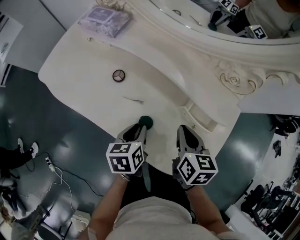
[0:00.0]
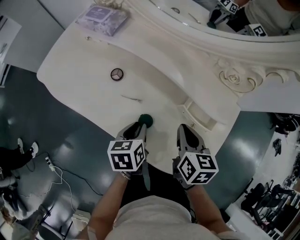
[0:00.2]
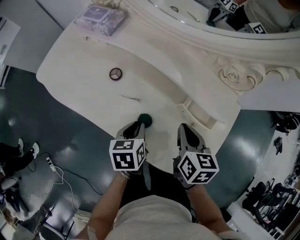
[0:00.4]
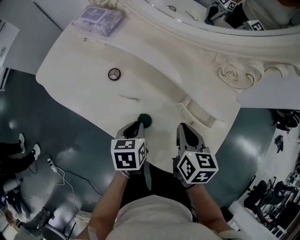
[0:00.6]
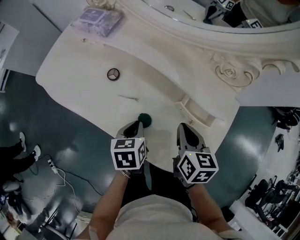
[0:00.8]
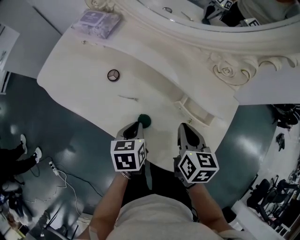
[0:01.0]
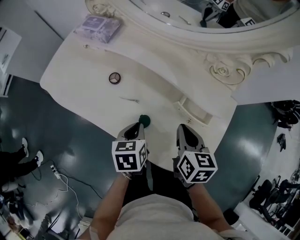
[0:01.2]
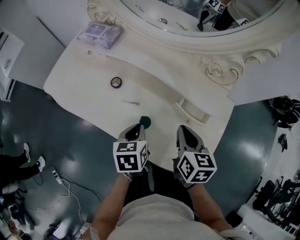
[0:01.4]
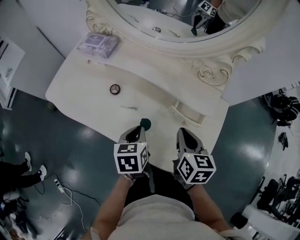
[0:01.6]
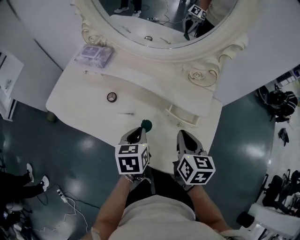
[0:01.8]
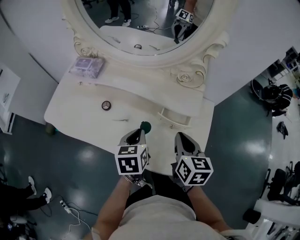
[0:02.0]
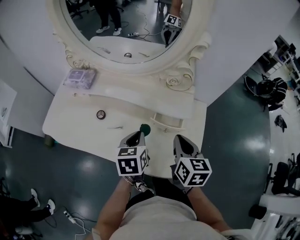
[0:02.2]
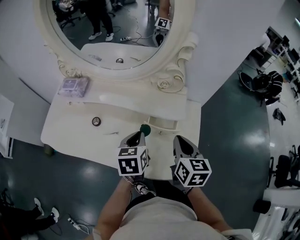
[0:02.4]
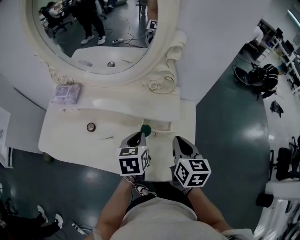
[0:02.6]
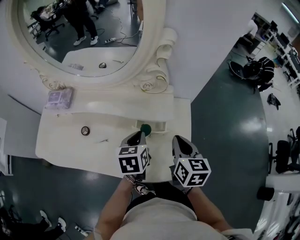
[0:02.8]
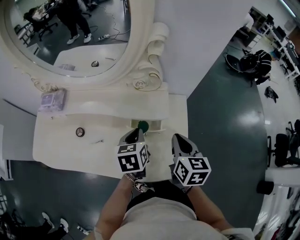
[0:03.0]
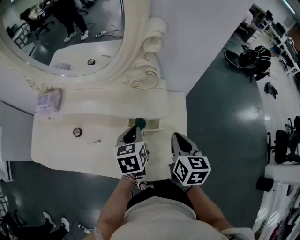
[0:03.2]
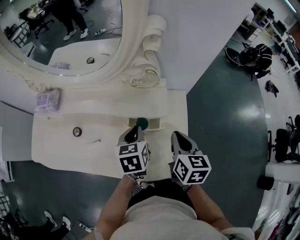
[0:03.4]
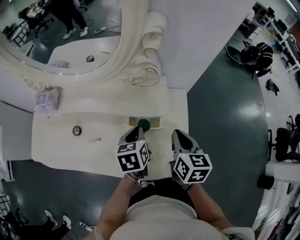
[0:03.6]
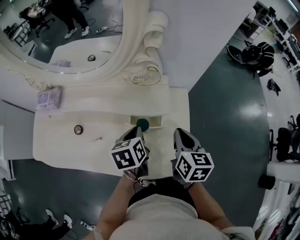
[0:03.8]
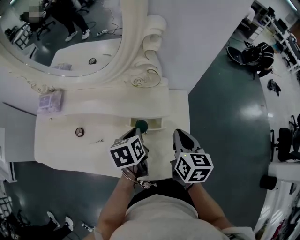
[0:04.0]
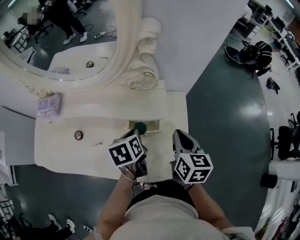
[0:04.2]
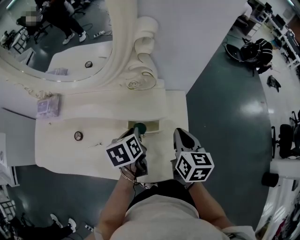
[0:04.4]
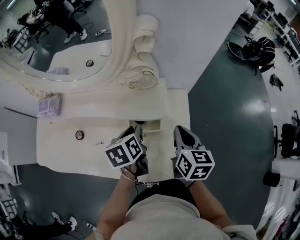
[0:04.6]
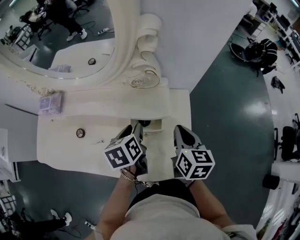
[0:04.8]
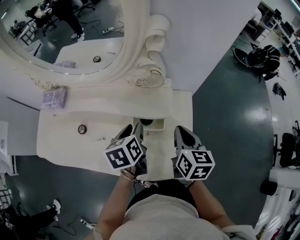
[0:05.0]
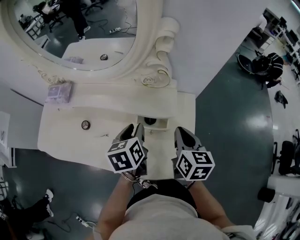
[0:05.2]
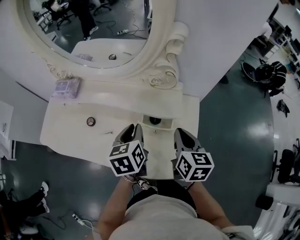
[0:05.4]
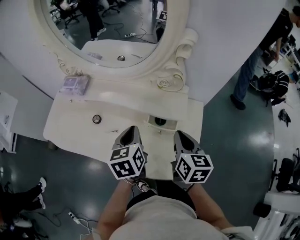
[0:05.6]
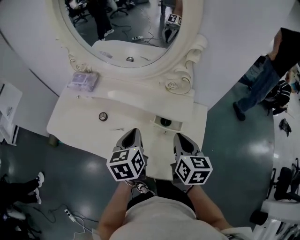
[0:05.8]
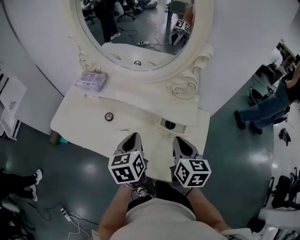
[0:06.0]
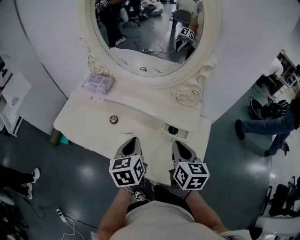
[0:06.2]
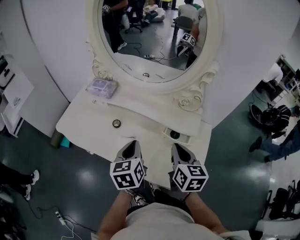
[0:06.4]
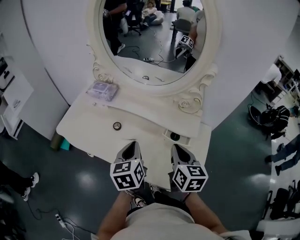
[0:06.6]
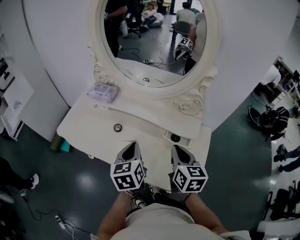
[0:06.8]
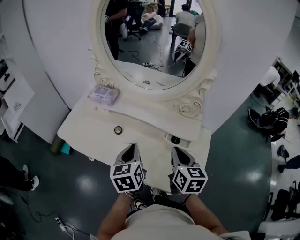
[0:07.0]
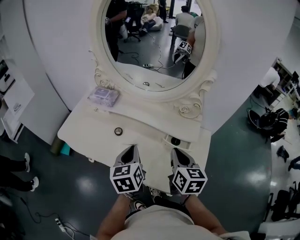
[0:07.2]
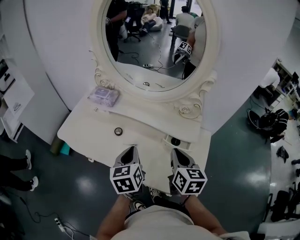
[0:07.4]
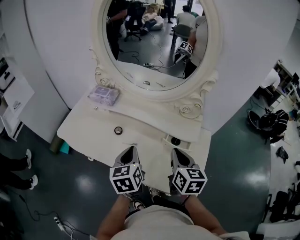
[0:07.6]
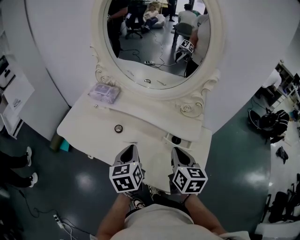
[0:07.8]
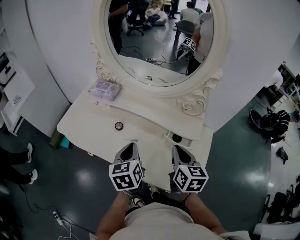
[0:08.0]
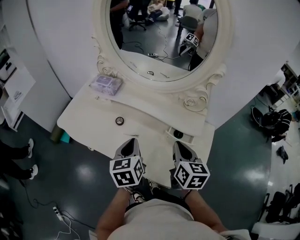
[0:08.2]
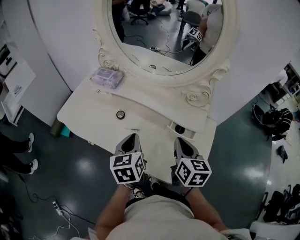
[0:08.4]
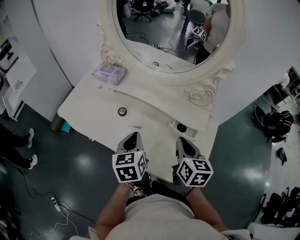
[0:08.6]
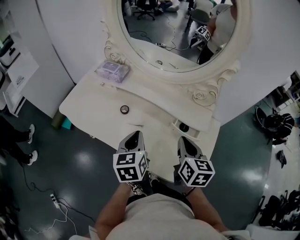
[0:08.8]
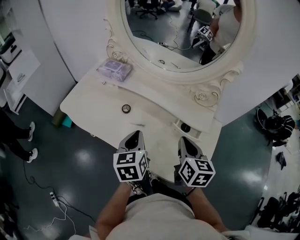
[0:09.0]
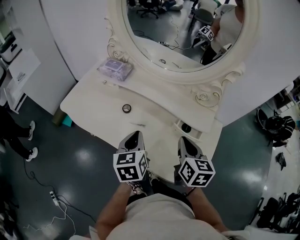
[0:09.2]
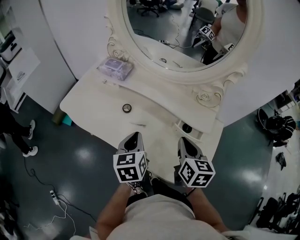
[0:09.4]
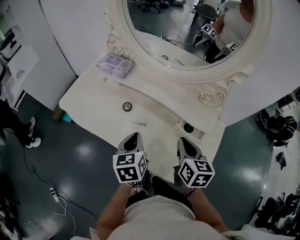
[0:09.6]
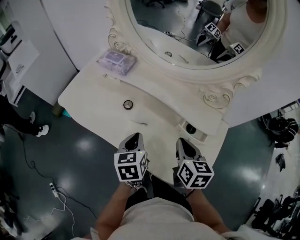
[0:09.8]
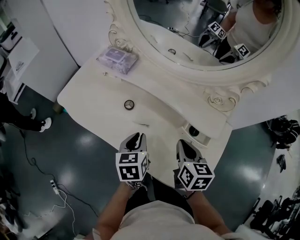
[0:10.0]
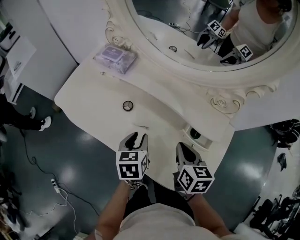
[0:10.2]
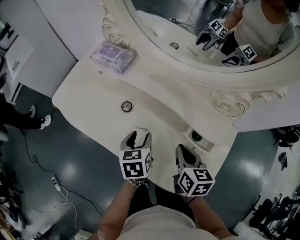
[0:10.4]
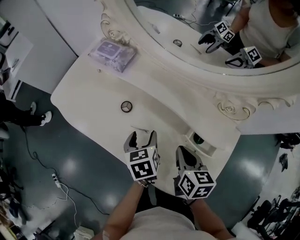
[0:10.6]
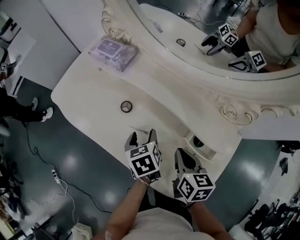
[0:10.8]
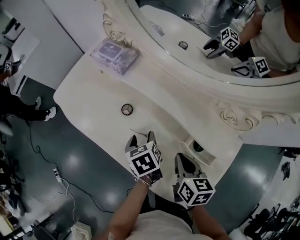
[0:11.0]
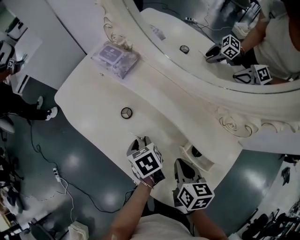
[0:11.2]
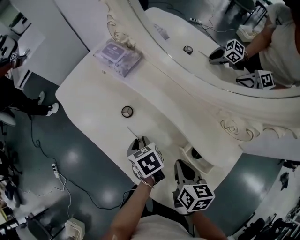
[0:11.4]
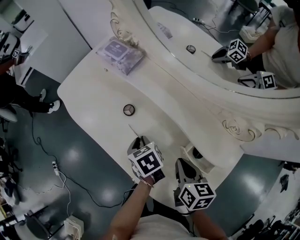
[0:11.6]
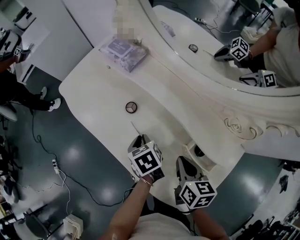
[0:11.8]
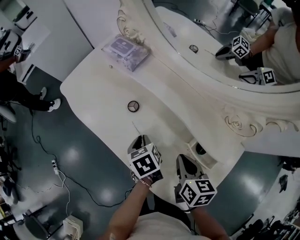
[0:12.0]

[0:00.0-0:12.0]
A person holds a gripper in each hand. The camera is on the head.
0:00.0 to 0:01.6: The right gripper shifts by about 5 cm. The left gripper moves upward, about 5 cm.
0:01.6 to 0:03.0: The right gripper shifts some 15 cm to the right, and changes its angle by roughly 20 degrees. Meanwhile the left gripper heads to the right and forward, covering approximately 15 cm.
0:03.0 to 0:04.4: The grippers stay close to where they were, moving slightly.
0:04.4 to 0:06.0: The left gripper heads to the left, upward and backward, covering roughly 15 cm, rotates roughly 30 degrees, and opens, then closes again, while the right gripper moves to the left, roughly 10 cm, and swivels some 20 degrees.
0:06.0 to 0:07.6: The right gripper ends up roughly 5 cm from where it was. The left gripper heads to the left, covering about 5 cm.
0:07.6 to 0:09.0: The grippers stay close to where they were, moving slightly.
0:09.0 to 0:10.4: The left gripper goes about 15 cm downward and forward, and opens its fingers; the right gripper heads downward, covering roughly 10 cm.
0:10.4 to 0:12.0: The left gripper changes place by about 5 cm, turns by about 30 degrees, and closes up.

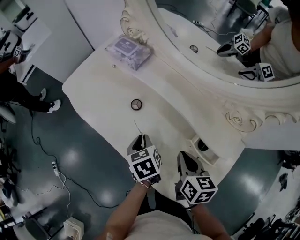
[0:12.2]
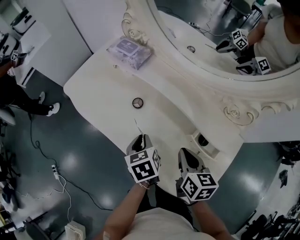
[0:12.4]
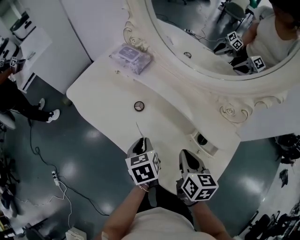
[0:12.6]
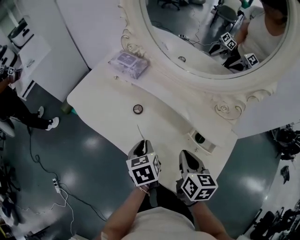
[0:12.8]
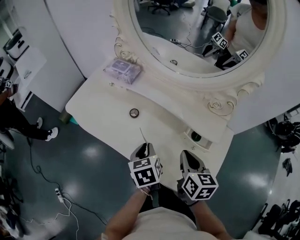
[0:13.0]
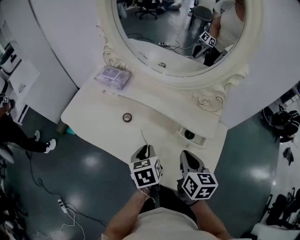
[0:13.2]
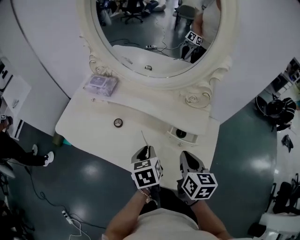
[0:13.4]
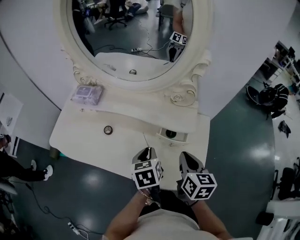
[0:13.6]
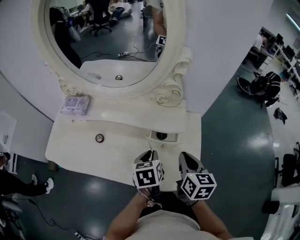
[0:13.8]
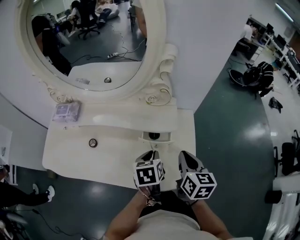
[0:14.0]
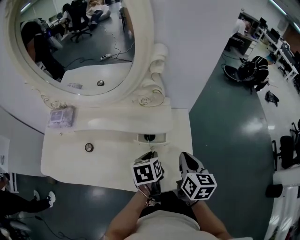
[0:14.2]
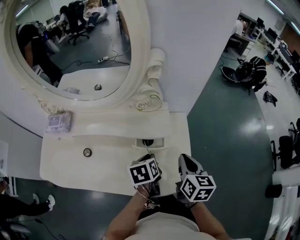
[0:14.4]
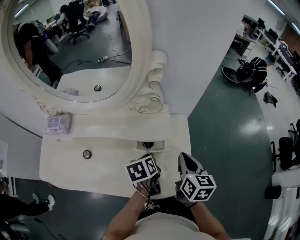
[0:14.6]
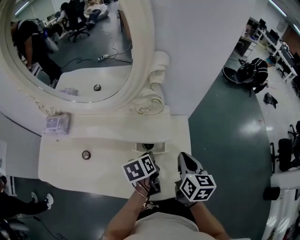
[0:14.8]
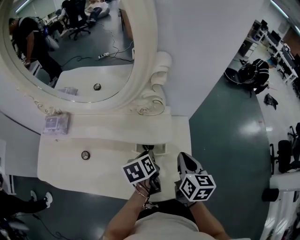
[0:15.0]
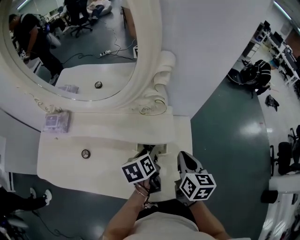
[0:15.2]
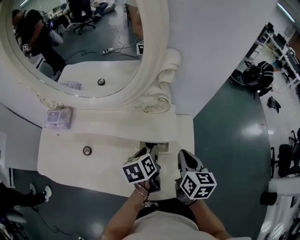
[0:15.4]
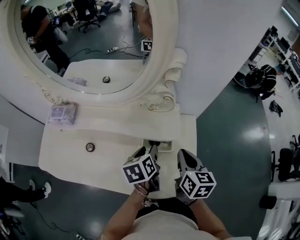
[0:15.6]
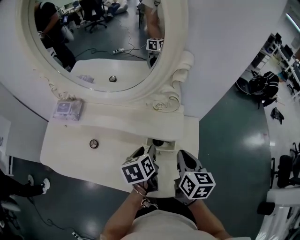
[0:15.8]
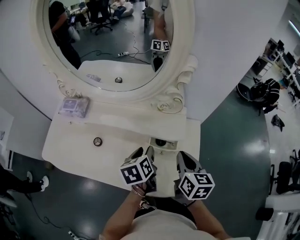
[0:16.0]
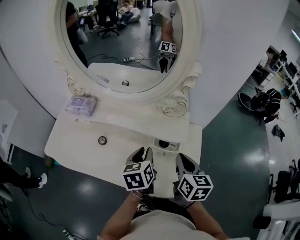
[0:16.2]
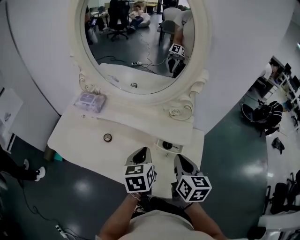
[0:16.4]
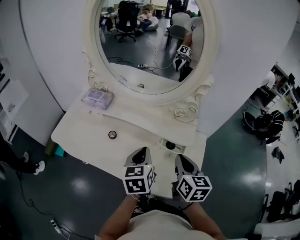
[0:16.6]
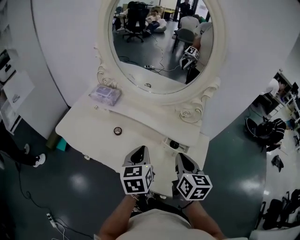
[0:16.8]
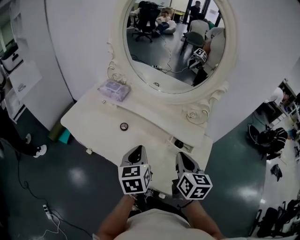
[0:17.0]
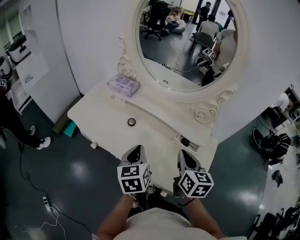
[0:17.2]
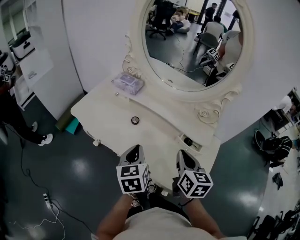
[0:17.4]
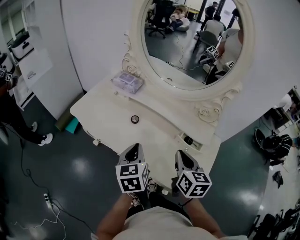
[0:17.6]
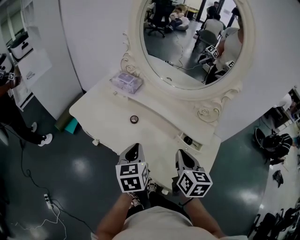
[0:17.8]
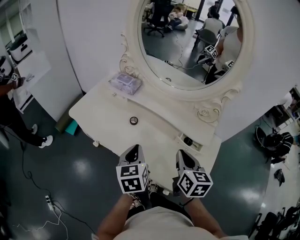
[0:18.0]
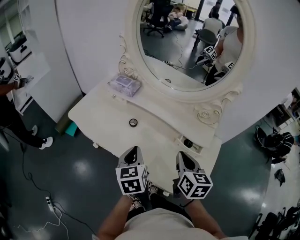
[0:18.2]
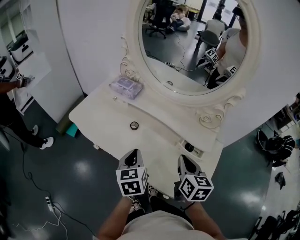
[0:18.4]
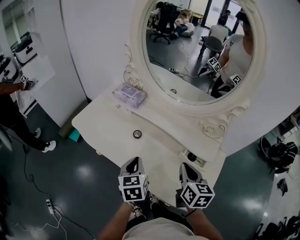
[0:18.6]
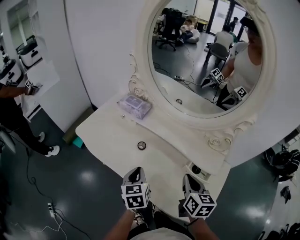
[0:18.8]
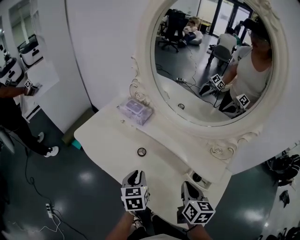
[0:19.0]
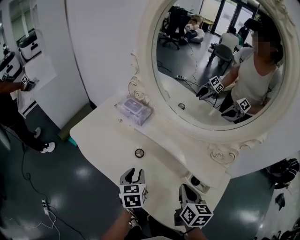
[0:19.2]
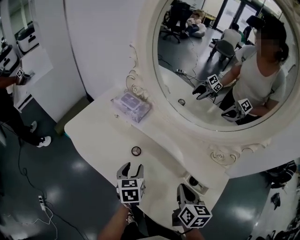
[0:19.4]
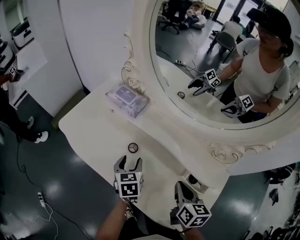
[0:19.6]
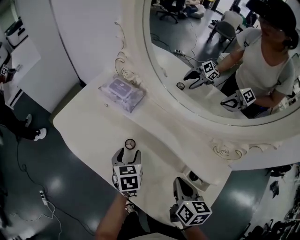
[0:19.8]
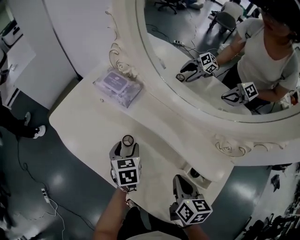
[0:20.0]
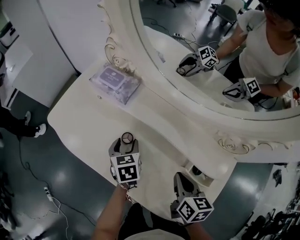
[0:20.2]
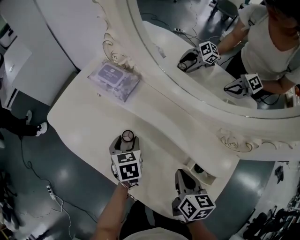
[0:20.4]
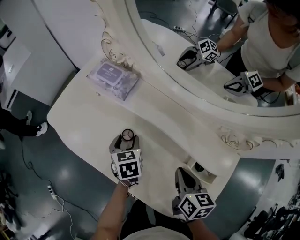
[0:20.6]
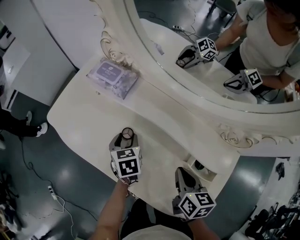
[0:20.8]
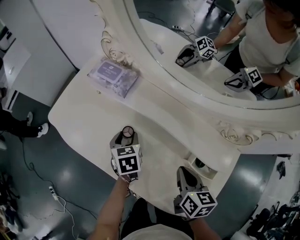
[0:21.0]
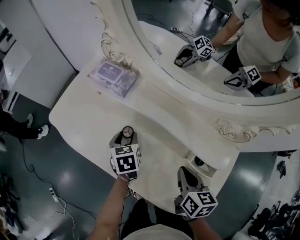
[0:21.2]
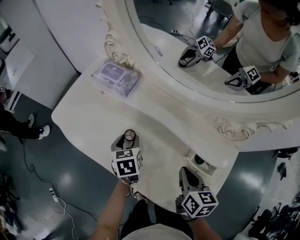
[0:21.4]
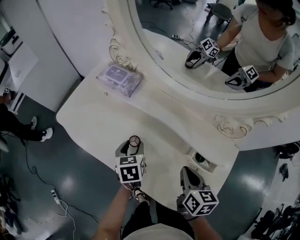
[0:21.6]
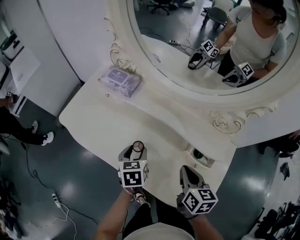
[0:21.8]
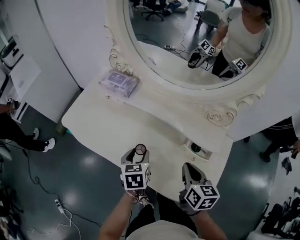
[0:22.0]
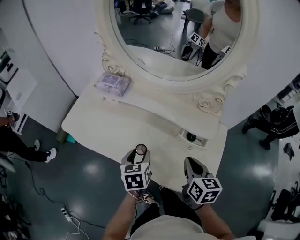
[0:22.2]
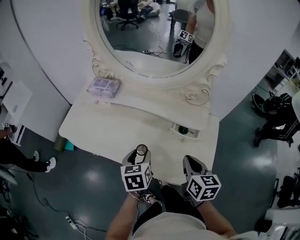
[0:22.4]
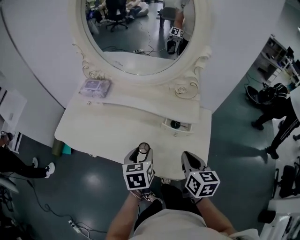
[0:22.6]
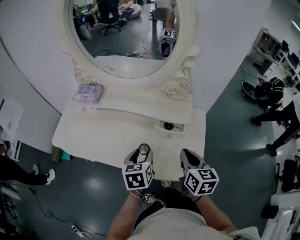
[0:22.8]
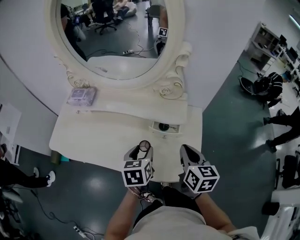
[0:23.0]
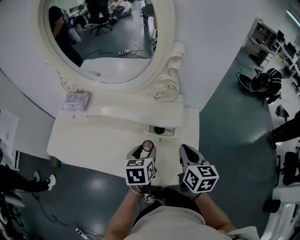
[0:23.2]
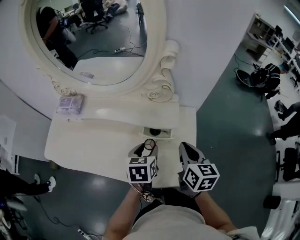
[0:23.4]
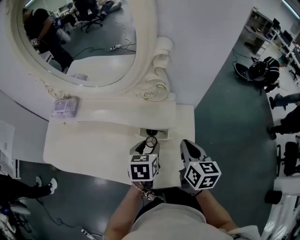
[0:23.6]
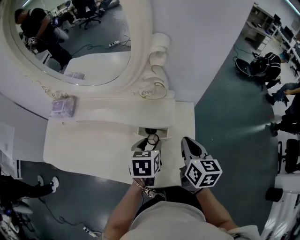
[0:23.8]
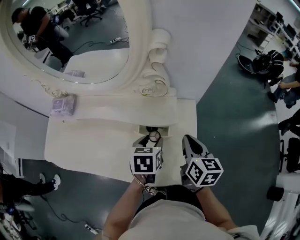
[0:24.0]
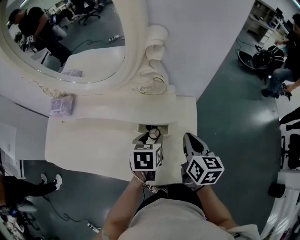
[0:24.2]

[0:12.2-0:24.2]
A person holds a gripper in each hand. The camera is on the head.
0:12.2 to 0:13.8: The left gripper changes place by roughly 20 cm, and rotates roughly 50 degrees. Meanwhile the right gripper changes place by about 20 cm, and turns by roughly 40 degrees.
0:13.8 to 0:15.2: Both grippers move forward, approximately 5 cm. The left gripper opens.
0:15.2 to 0:16.6: The left gripper moves to the left, upward and backward, some 20 cm, changes its angle by some 30 degrees, and closes. Meanwhile the right gripper moves to the left and upward, some 15 cm, and swivels roughly 20 degrees.
0:16.6 to 0:18.2: The right gripper travels to the left by roughly 10 cm; the left gripper moves to the left, roughly 15 cm.
0:18.2 to 0:19.8: The right gripper goes some 10 cm downward and forward, while the left gripper moves forward and downward, approximately 20 cm, and opens its fingers.
0:19.8 to 0:21.2: The grippers stay close to where they were, moving slightly.
0:21.2 to 0:22.6: The right gripper goes approximately 20 cm backward, upward and to the right, while the left gripper goes about 25 cm backward, to the right and upward, and changes its angle by roughly 30 degrees.
0:22.6 to 0:24.2: Both grippers travel together to the right and forward, roughly 20 cm. The left gripper swivels roughly 20 degrees.
